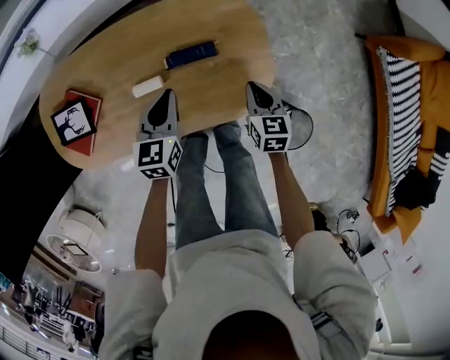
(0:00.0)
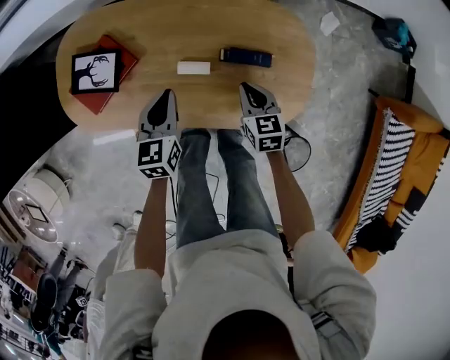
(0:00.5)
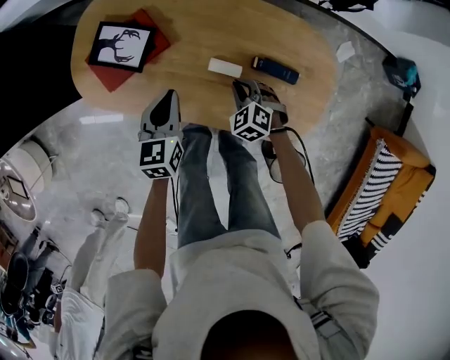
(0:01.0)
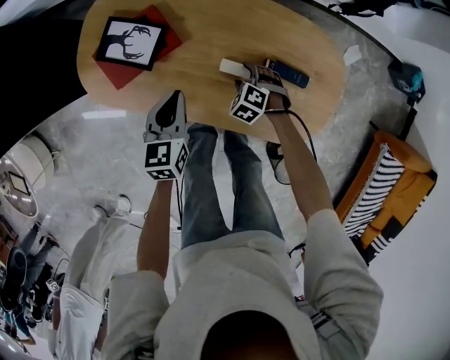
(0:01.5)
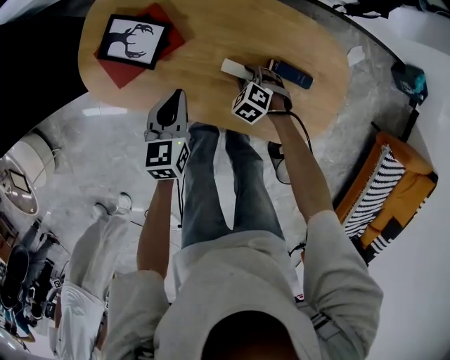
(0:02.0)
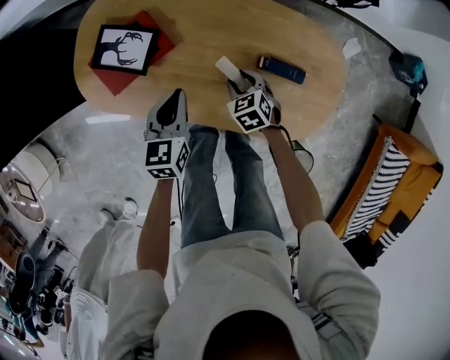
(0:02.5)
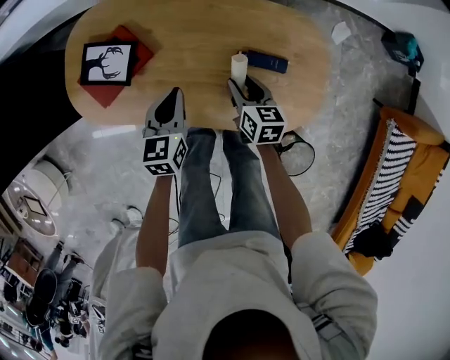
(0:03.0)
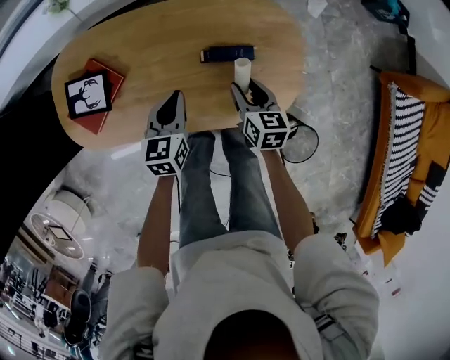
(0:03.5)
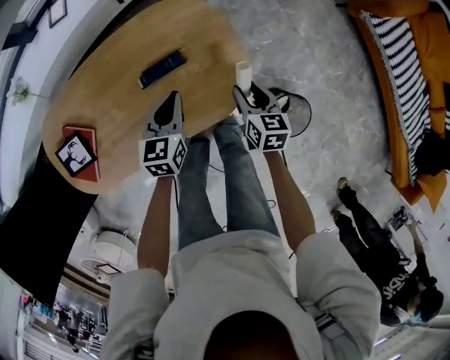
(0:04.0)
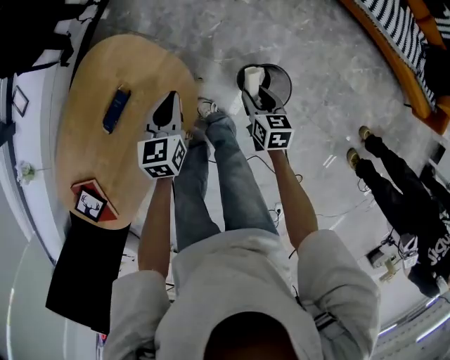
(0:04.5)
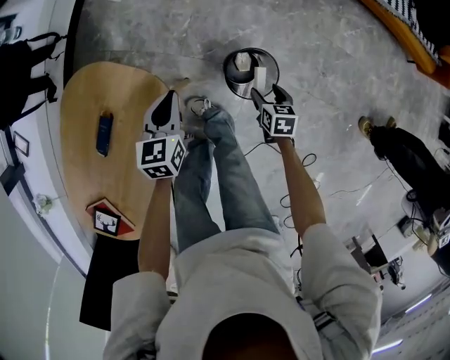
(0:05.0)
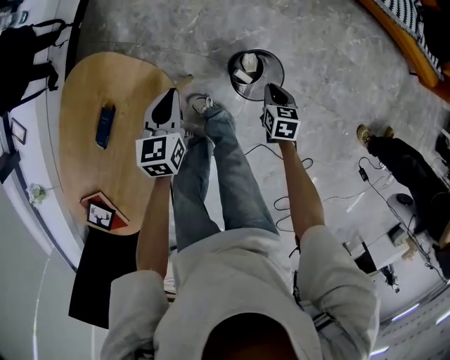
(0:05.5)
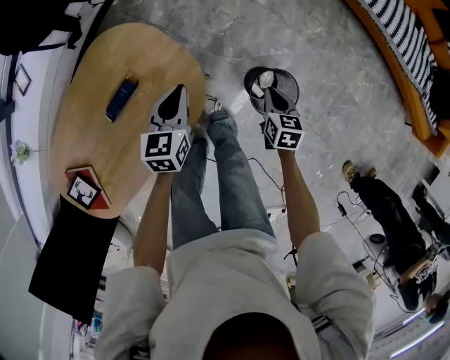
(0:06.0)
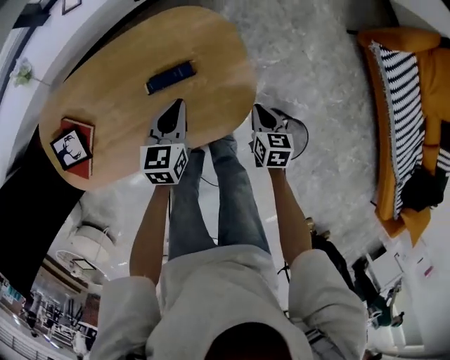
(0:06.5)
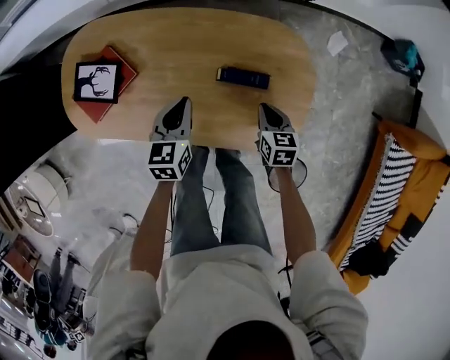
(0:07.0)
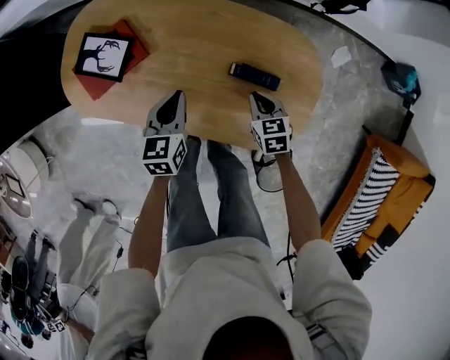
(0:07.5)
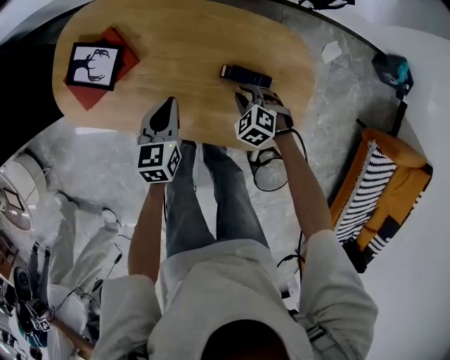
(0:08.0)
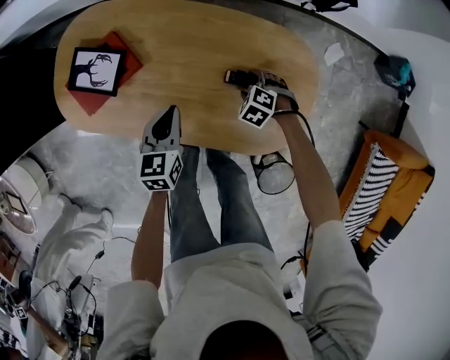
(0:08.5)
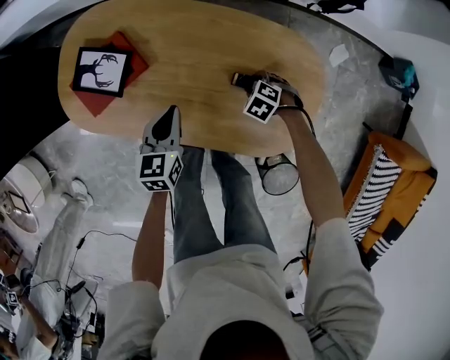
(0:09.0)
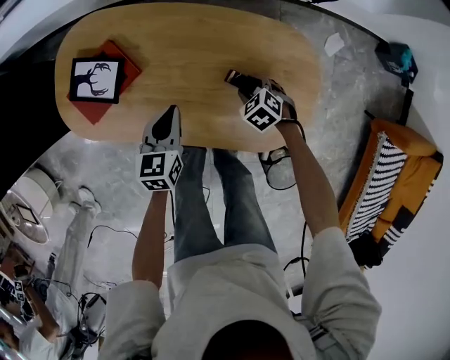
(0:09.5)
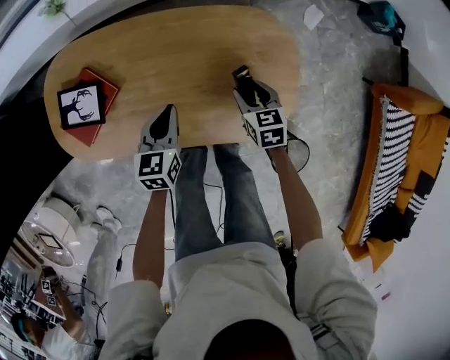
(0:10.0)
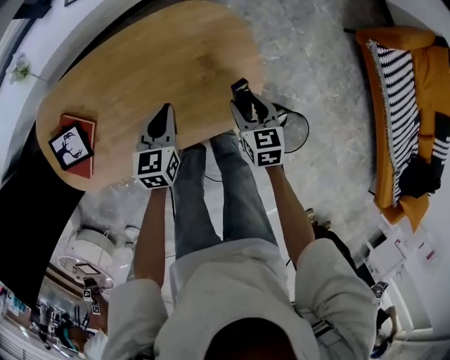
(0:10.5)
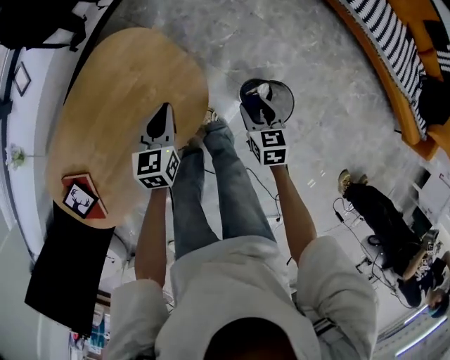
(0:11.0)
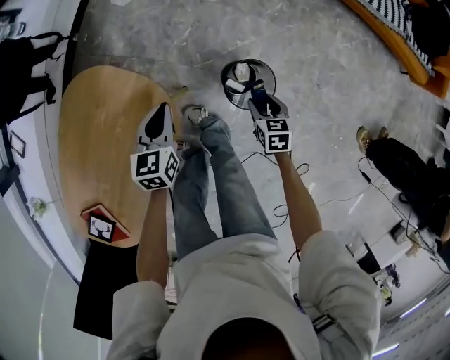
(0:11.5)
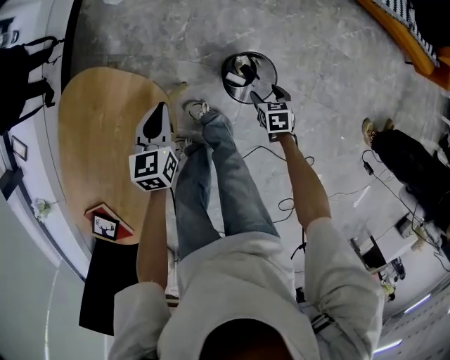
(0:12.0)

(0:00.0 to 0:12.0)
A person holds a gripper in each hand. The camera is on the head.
0:00.0 - 0:02.0: The right gripper ends up roughly 30 cm from where it was, rotates around the line of its fingers by roughly 80 degrees, counterclockwise from behind, and opens its fingers, while the left gripper ends up about 25 cm from where it was, and changes its angle by some 30 degrees.
0:02.0 - 0:04.0: The right gripper shifts by some 35 cm, and rolls clockwise, seen from behind, by about 90 degrees, while the left gripper moves approximately 35 cm, and swivels about 40 degrees.
0:04.0 - 0:06.0: The right gripper changes place by approximately 25 cm, swivels roughly 30 degrees, and closes up. The left gripper shifts by approximately 20 cm, and turns by roughly 20 degrees.
0:06.0 - 0:08.0: The left gripper shifts by approximately 40 cm, and turns by approximately 60 degrees. The right gripper shifts by about 50 cm, and rotates around the line of its fingers by roughly 110 degrees, counterclockwise from behind.
0:08.0 - 0:10.0: The right gripper ends up about 10 cm from where it was, rolls clockwise, seen from behind, by about 60 degrees, and opens.
0:10.0 - 0:12.0: The pair of grippers is taken about 40 cm. The left gripper rotates approximately 60 degrees; the right gripper rotates around the line of its fingers by some 60 degrees, clockwise from behind.

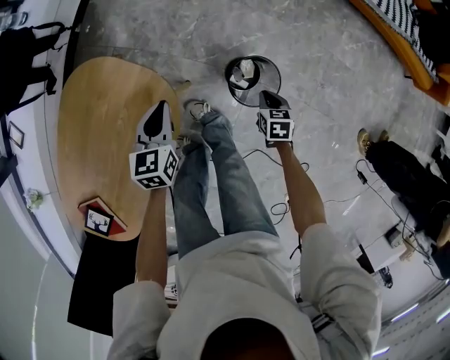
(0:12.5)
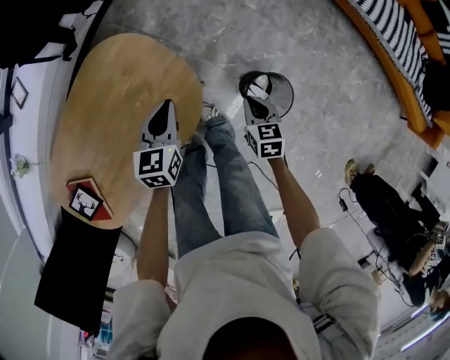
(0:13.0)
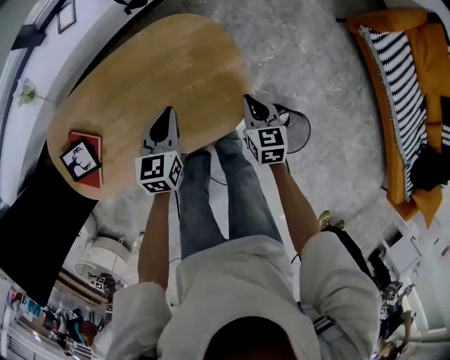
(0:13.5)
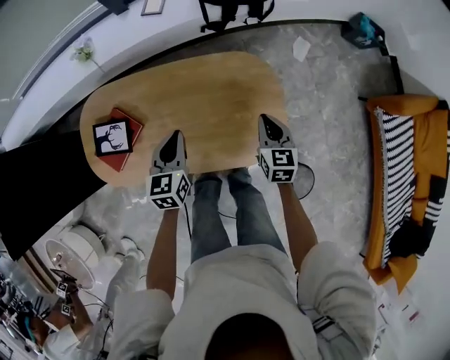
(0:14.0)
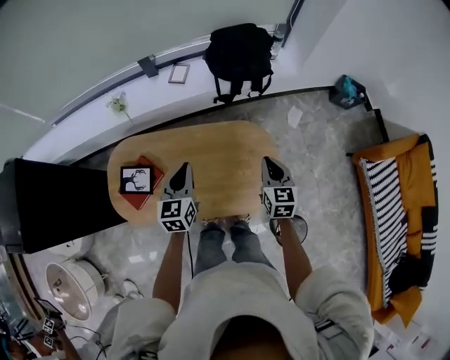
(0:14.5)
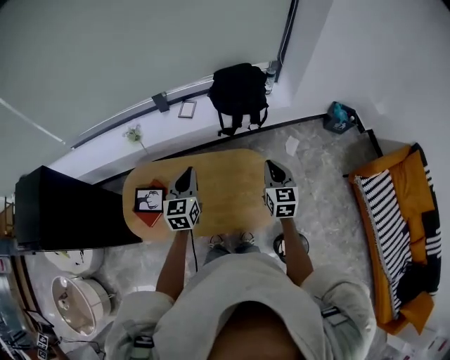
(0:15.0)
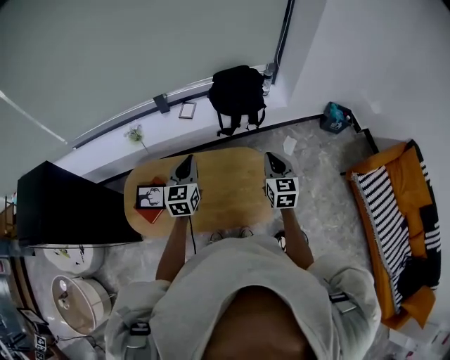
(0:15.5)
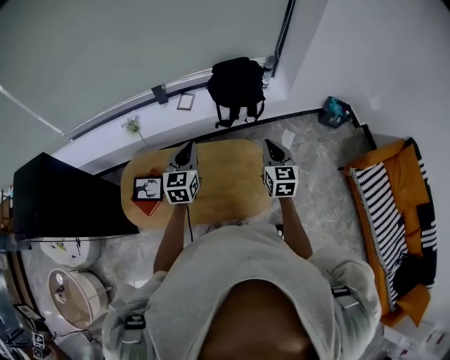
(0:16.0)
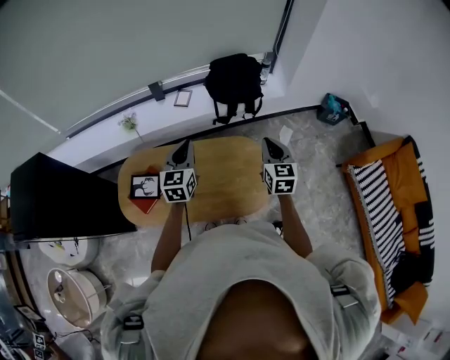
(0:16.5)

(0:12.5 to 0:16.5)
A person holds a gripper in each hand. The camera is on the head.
0:12.5 - 0:14.5: The left gripper changes place by about 50 cm, and changes its angle by roughly 60 degrees, while the right gripper ends up about 60 cm from where it was, and angles its fingers upward, by approximately 40 degrees.
0:14.5 - 0:16.5: The grippers both shift upward by approximately 15 cm.

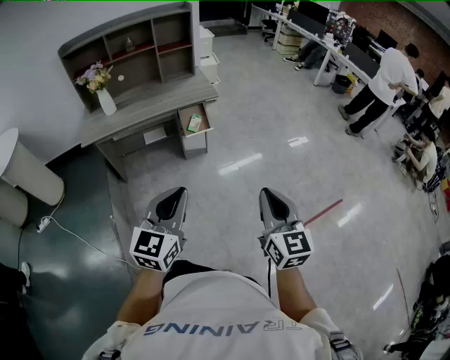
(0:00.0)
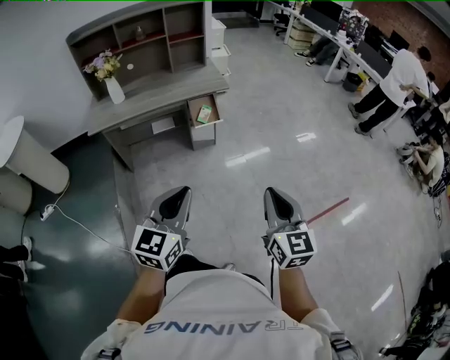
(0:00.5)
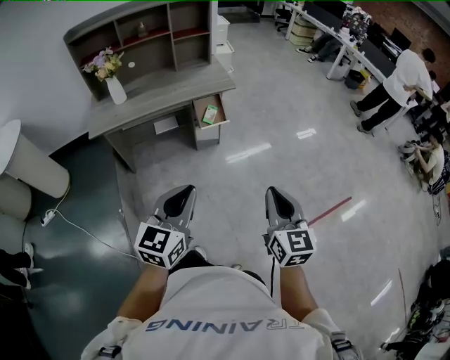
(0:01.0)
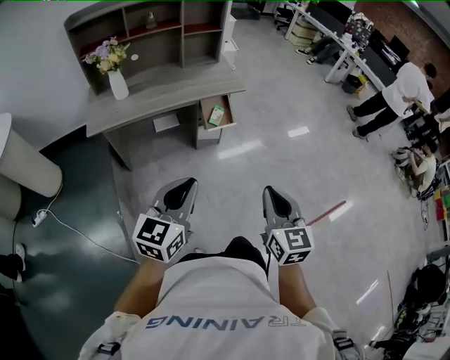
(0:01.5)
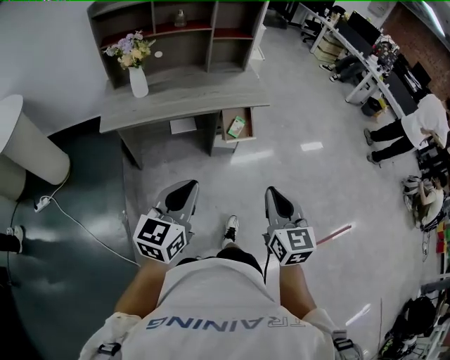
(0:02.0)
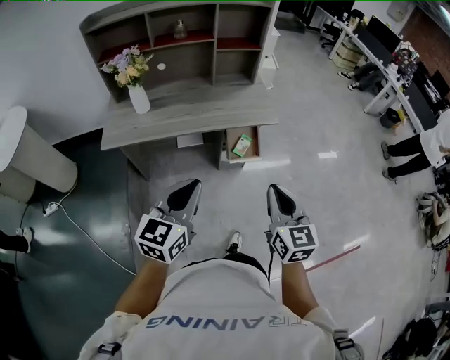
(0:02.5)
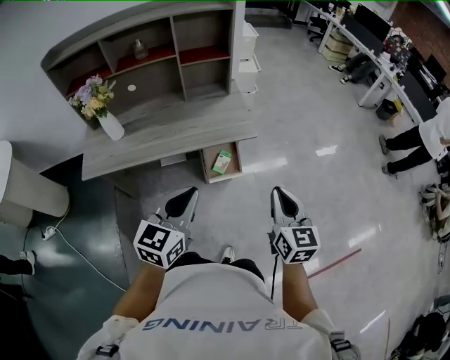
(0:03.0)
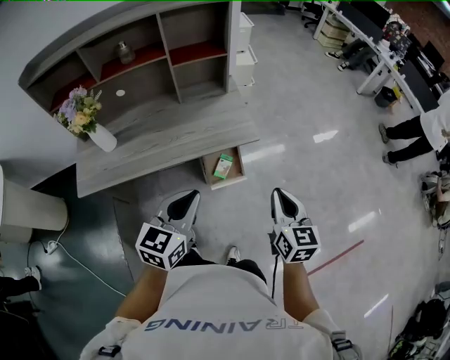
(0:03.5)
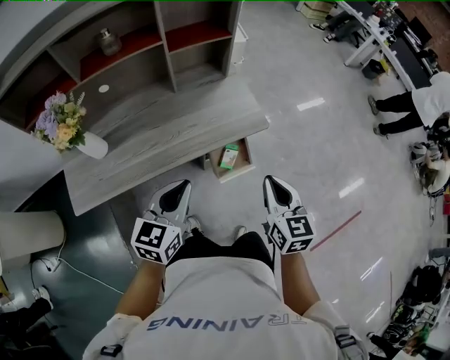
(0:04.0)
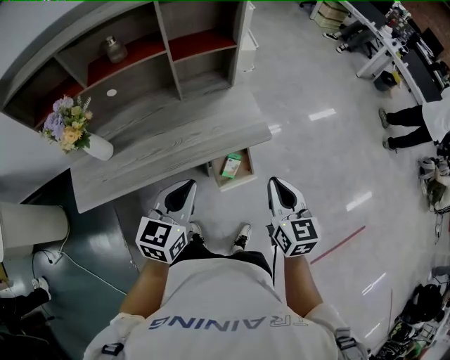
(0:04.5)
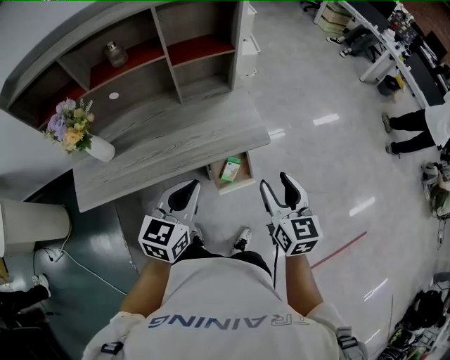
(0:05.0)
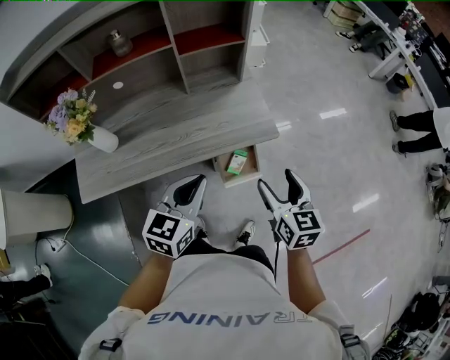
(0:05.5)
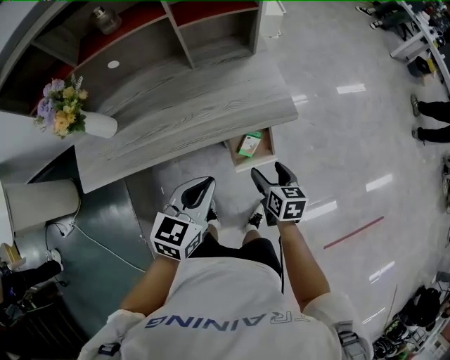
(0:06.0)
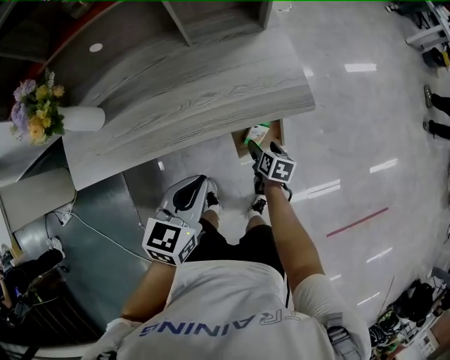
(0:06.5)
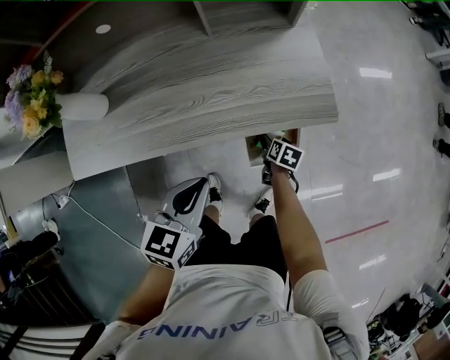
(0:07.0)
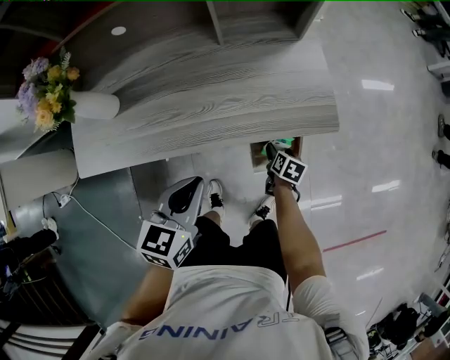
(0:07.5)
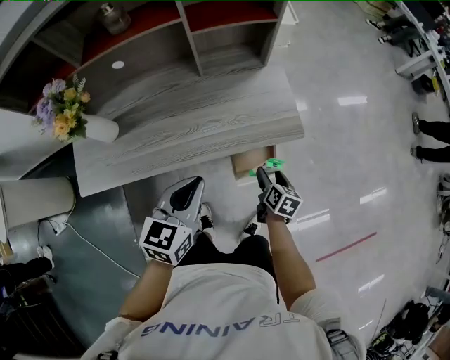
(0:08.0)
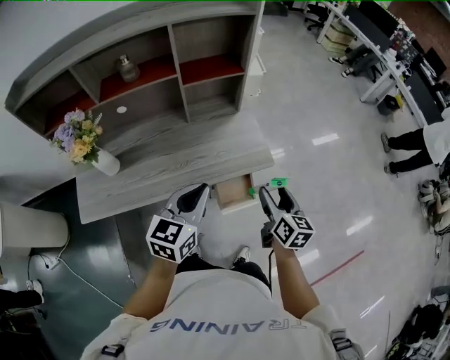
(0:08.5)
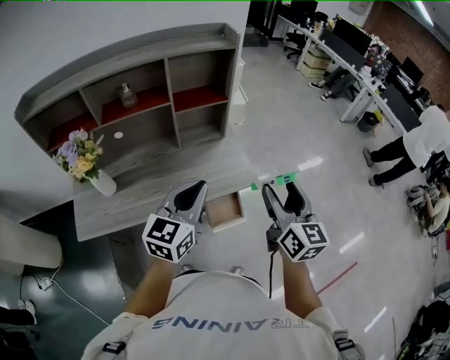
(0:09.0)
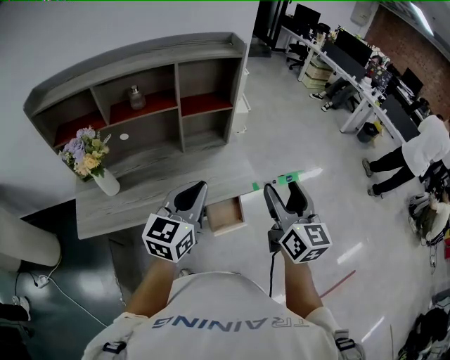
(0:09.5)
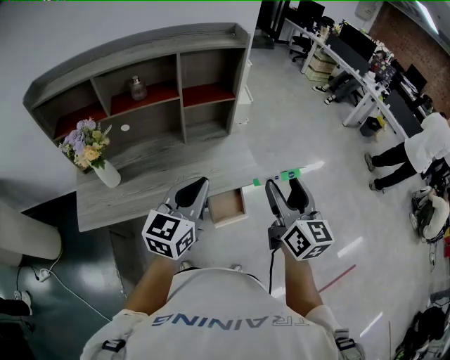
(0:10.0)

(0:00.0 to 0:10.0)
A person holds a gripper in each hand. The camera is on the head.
0:00.0 - 0:02.0: The two grippers go roughly 25 cm to the left and forward.
0:02.0 - 0:04.0: Both grippers travel together forward, roughly 40 cm.
0:04.0 - 0:06.0: The right gripper shifts roughly 20 cm downward, turns by roughly 30 degrees, and opens up. The left gripper shifts about 10 cm downward and to the right.
0:06.0 - 0:08.0: The left gripper travels downward and back again, approximately 10 cm each way, while the right gripper shifts about 5 cm forward, and travels downward and back again, roughly 25 cm each way.
0:08.0 - 0:10.0: The left gripper moves upward, roughly 20 cm, and swivels approximately 20 degrees. Meanwhile the right gripper travels upward by approximately 50 cm, and angles its fingers upward, by some 40 degrees.
